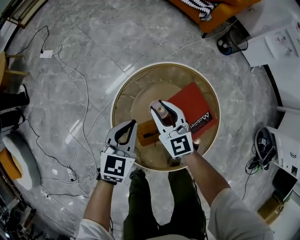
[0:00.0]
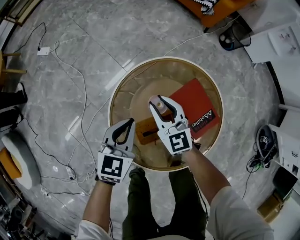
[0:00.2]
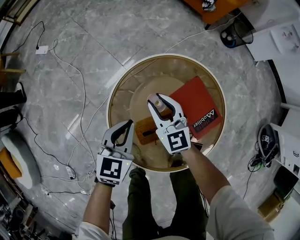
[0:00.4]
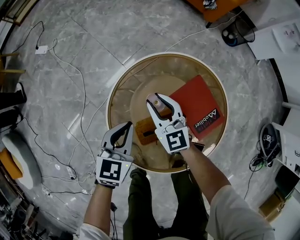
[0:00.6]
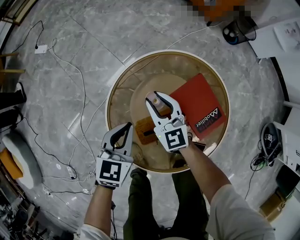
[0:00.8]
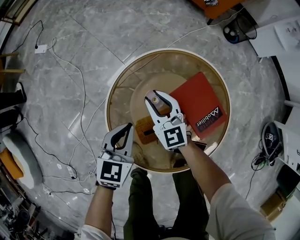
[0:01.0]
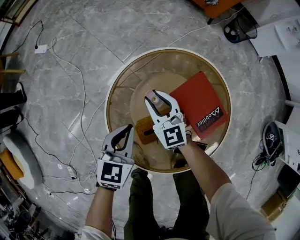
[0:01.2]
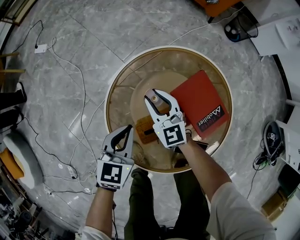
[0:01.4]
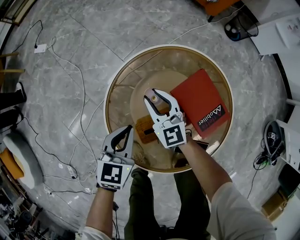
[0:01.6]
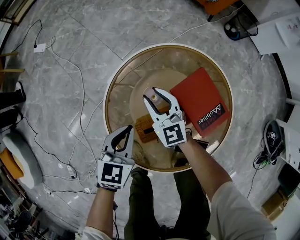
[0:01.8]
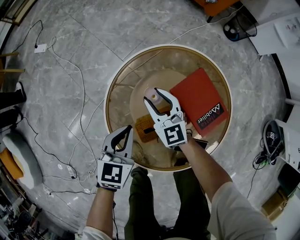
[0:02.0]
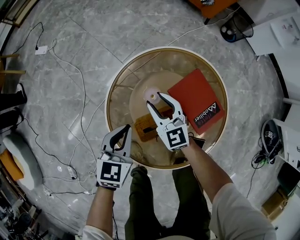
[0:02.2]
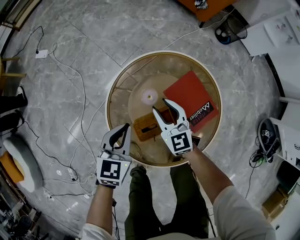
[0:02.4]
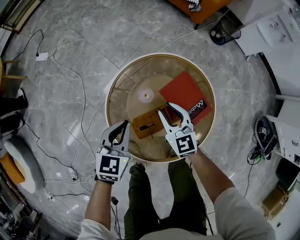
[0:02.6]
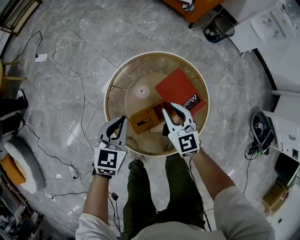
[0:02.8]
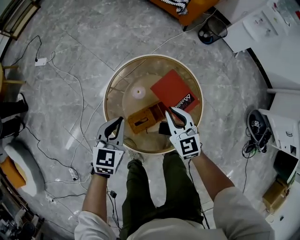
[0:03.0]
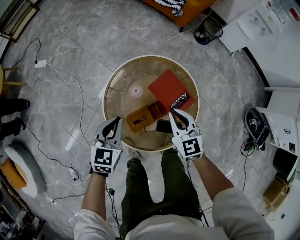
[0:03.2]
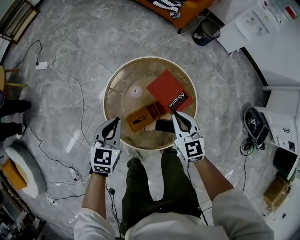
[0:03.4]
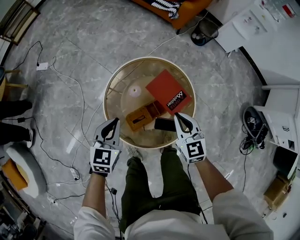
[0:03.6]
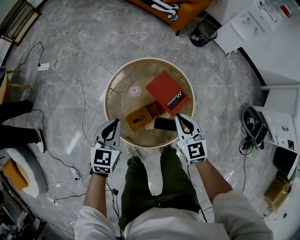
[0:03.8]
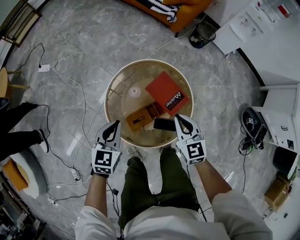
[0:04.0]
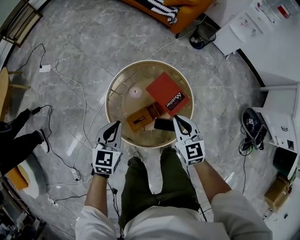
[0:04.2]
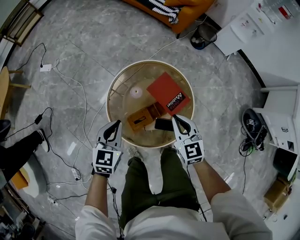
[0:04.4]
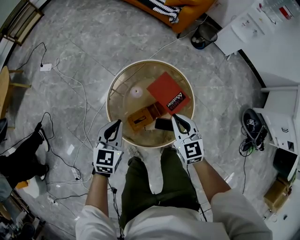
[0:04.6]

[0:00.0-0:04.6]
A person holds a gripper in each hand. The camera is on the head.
0:00.0 to 0:01.6: The two grippers go about 10 cm downward.
0:01.6 to 0:03.0: The left gripper heads upward, covering roughly 15 cm, while the right gripper goes some 25 cm upward, to the right and backward, and closes.
0:03.0 to 0:04.6: The left gripper travels upward by some 10 cm, while the right gripper heads upward and backward, covering approximately 10 cm.

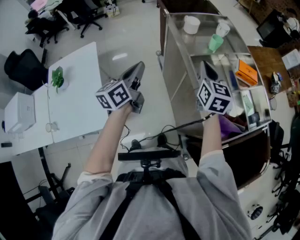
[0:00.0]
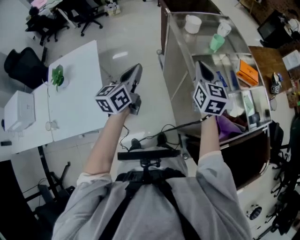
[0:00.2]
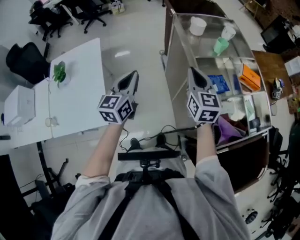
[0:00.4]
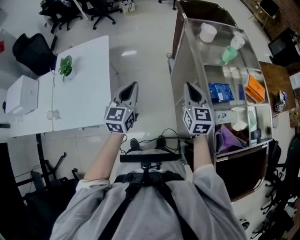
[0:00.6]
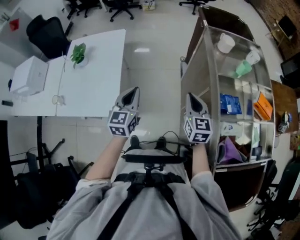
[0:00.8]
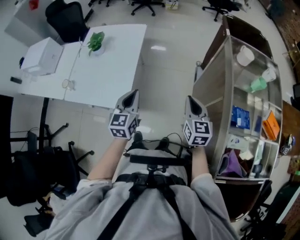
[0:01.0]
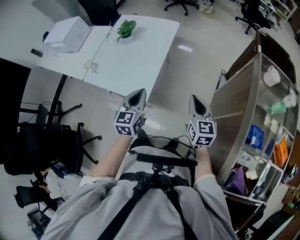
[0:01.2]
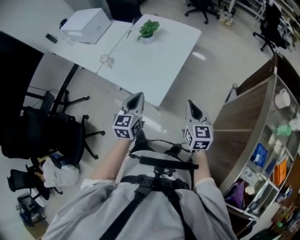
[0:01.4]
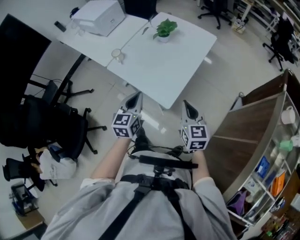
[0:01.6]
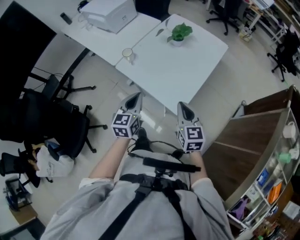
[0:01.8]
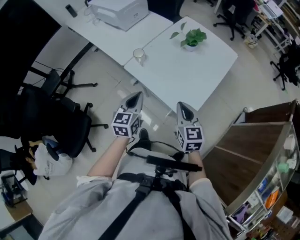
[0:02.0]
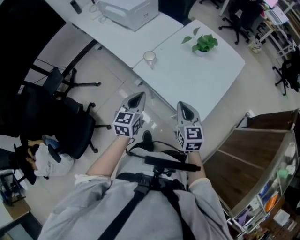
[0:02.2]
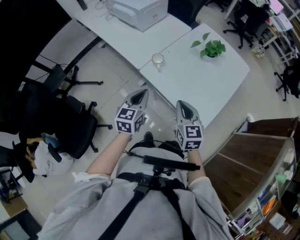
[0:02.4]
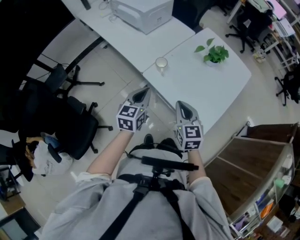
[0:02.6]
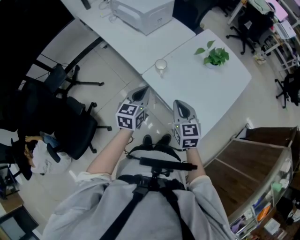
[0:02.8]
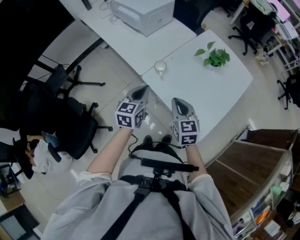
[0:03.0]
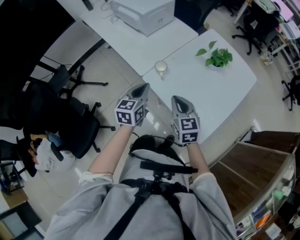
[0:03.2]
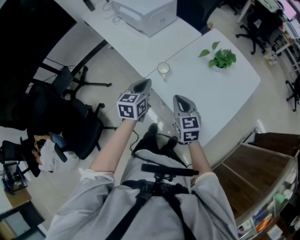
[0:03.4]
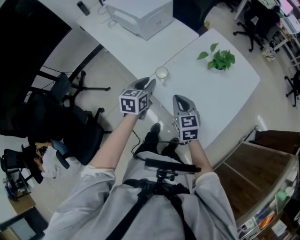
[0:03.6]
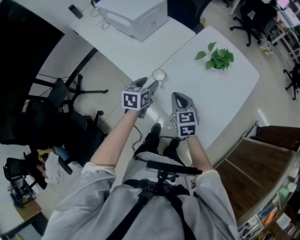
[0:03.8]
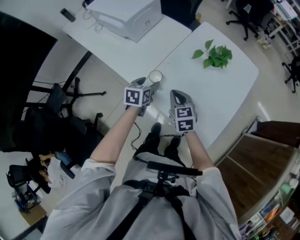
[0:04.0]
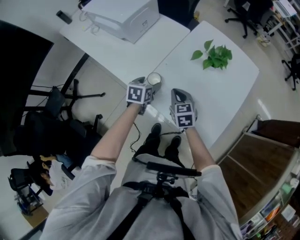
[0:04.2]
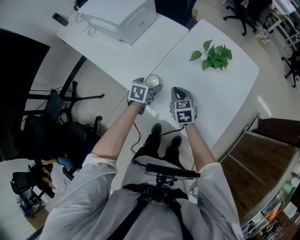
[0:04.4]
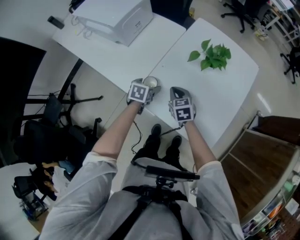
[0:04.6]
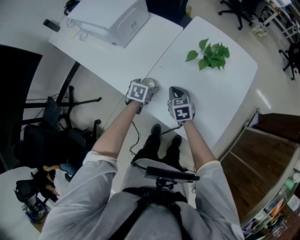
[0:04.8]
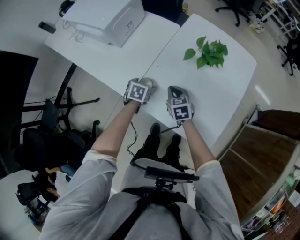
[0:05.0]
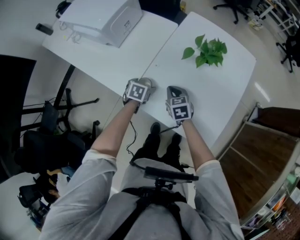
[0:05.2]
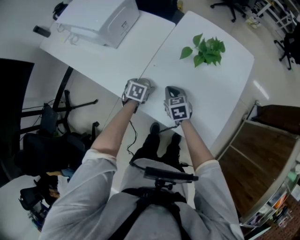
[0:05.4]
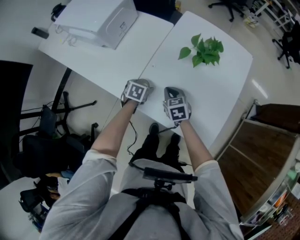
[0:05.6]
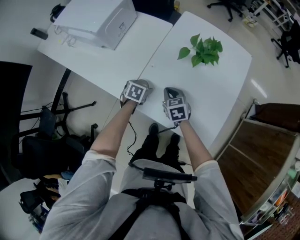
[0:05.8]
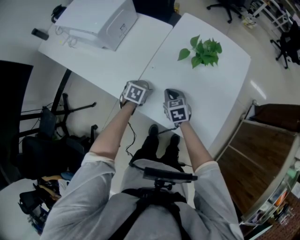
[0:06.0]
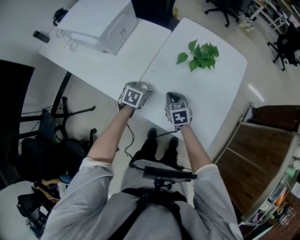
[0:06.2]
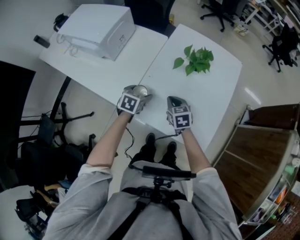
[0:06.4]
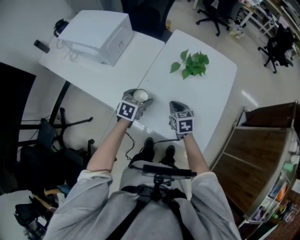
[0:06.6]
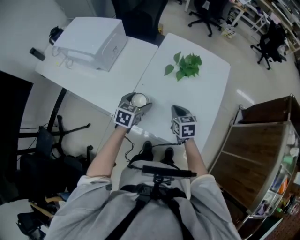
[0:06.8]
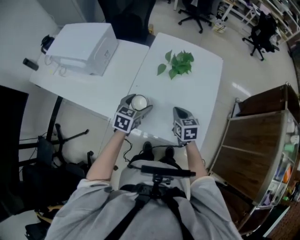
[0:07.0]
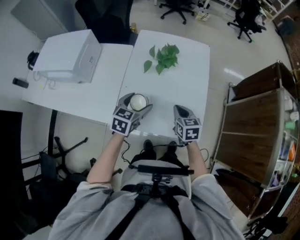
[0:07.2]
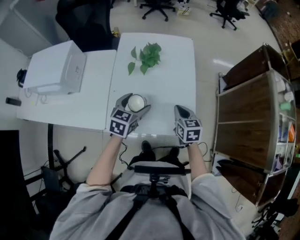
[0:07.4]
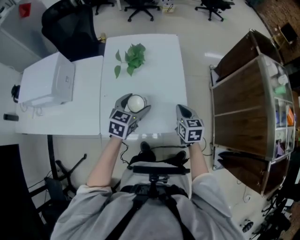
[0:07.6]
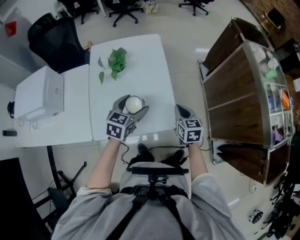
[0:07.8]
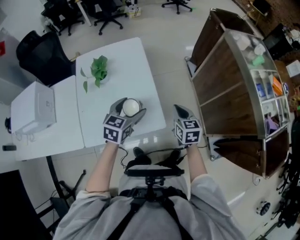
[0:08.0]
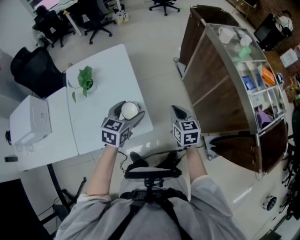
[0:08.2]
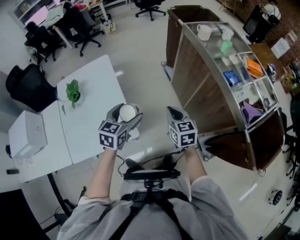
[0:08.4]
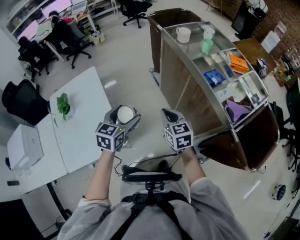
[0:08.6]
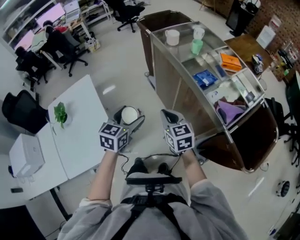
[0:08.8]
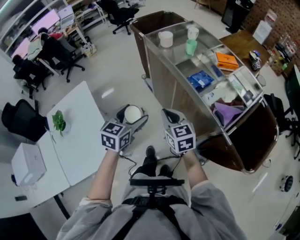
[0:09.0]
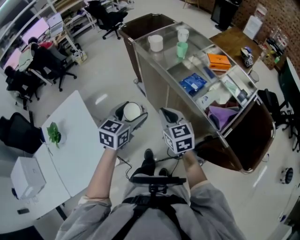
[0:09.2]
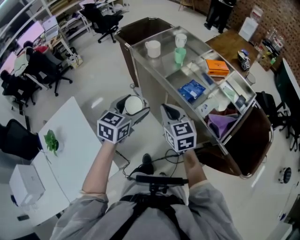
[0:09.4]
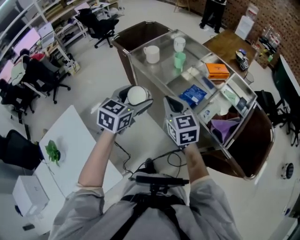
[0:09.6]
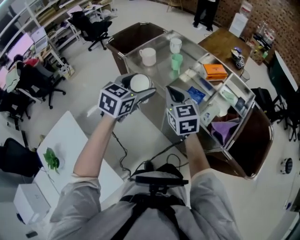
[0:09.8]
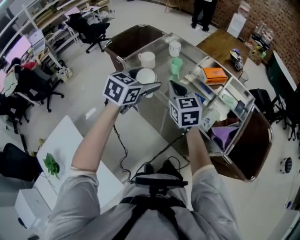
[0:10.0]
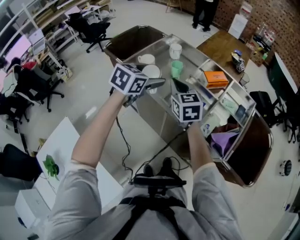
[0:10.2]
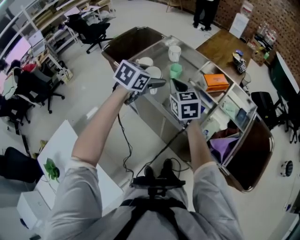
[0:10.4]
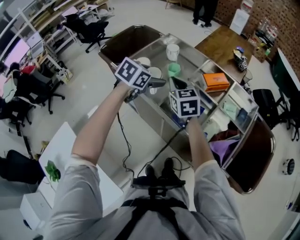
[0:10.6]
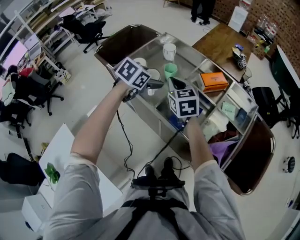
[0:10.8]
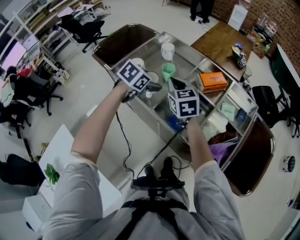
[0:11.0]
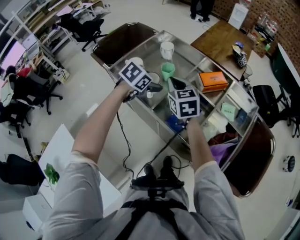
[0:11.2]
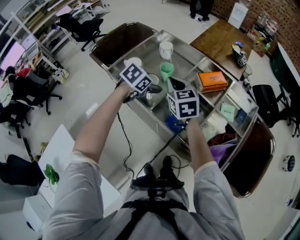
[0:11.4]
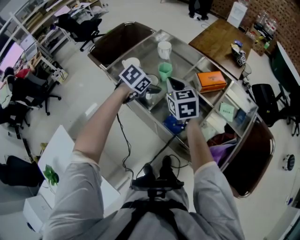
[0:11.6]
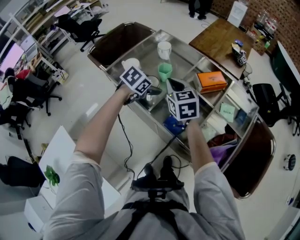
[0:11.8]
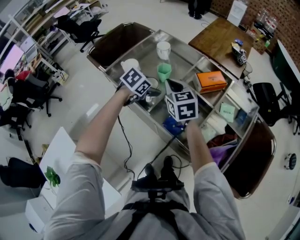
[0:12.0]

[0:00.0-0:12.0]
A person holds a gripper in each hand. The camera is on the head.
0:00.0 to 0:01.6: Both grippers are carried approximately 50 cm. The right gripper swivels some 60 degrees, while the left gripper changes its angle by about 70 degrees.
0:01.6 to 0:03.0: Both grippers travel together to the left and forward, approximately 35 cm.
0:03.0 to 0:04.4: Both grippers move forward and downward, some 25 cm. The left gripper turns by roughly 30 degrees, and opens up.
0:04.4 to 0:06.0: The left gripper travels downward by about 5 cm.
0:06.0 to 0:07.6: The left gripper changes place by some 30 cm, and tips its fingers upward by approximately 30 degrees; the right gripper shifts by approximately 30 cm, and swivels approximately 40 degrees.
0:07.6 to 0:09.0: Both grippers are carried to the right, about 50 cm. The right gripper changes its angle by about 20 degrees. Meanwhile the left gripper rotates some 30 degrees.
0:09.0 to 0:10.4: The right gripper changes place by roughly 35 cm, and changes its angle by some 20 degrees; the left gripper ends up roughly 40 cm from where it was, and turns by approximately 30 degrees.
0:10.4 to 0:12.0: The left gripper heads downward and forward, covering approximately 15 cm, and turns by about 20 degrees. The right gripper heads forward, covering roughly 5 cm.

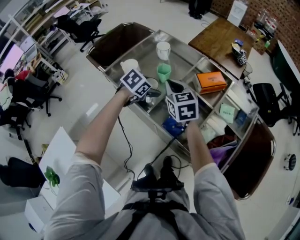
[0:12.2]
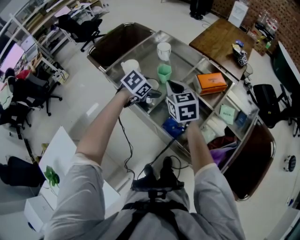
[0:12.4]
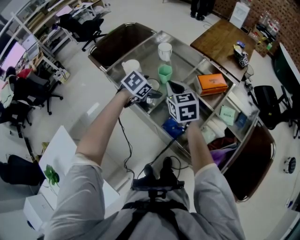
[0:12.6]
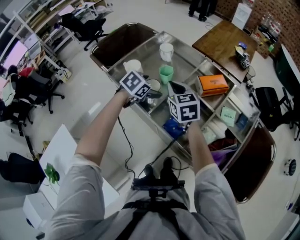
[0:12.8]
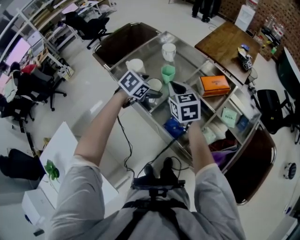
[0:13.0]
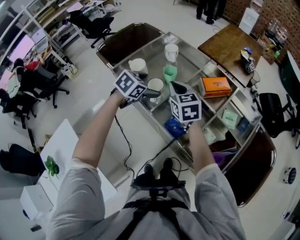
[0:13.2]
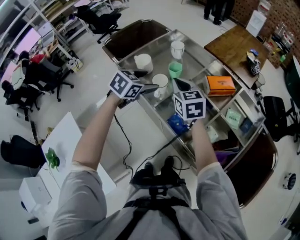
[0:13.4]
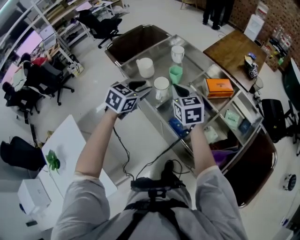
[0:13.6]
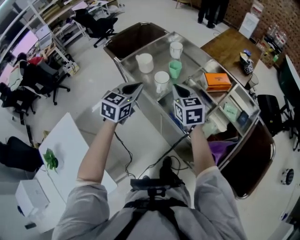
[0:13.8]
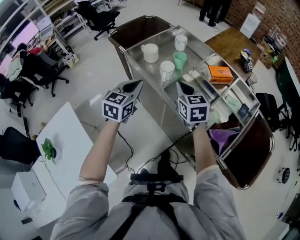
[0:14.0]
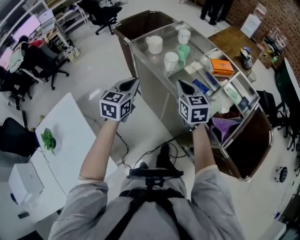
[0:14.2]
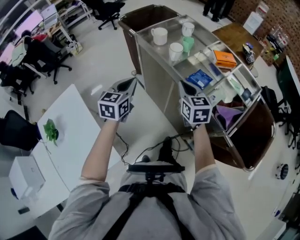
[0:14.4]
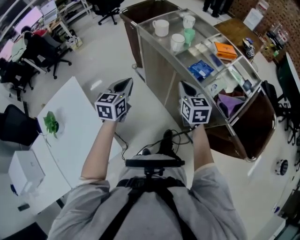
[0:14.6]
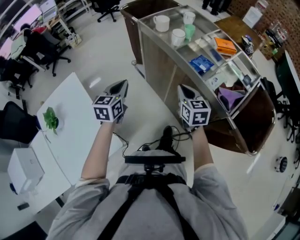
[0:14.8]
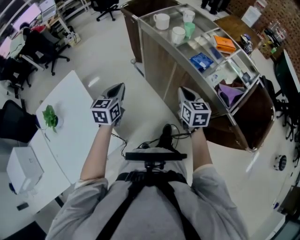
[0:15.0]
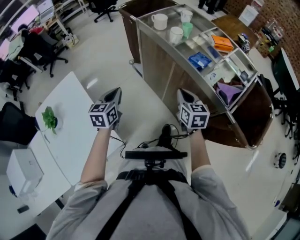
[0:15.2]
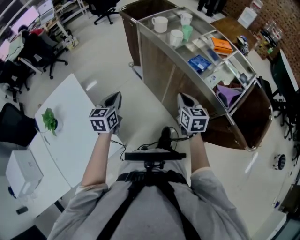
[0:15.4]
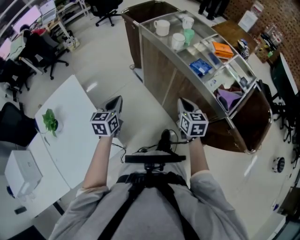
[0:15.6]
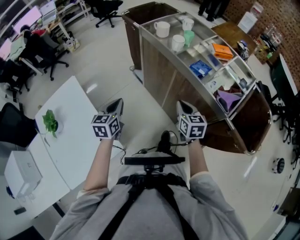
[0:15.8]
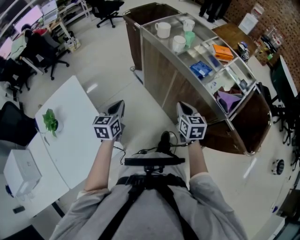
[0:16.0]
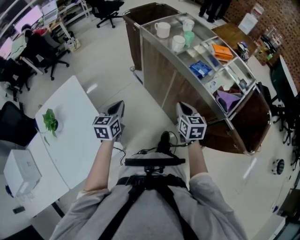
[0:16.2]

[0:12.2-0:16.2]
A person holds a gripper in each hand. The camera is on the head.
0:12.2 to 0:13.6: The left gripper travels upward, backward and to the left by roughly 15 cm, changes its angle by roughly 30 degrees, and closes up.
0:13.6 to 0:14.8: The right gripper moves backward, some 30 cm. Meanwhile the left gripper heads backward and to the left, covering roughly 35 cm, and turns by approximately 30 degrees.
0:14.8 to 0:16.2: The left gripper goes about 10 cm backward and downward. Meanwhile the right gripper moves backward, roughly 5 cm.

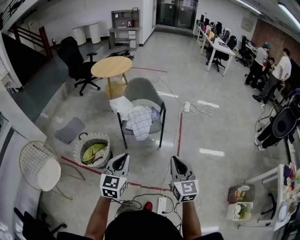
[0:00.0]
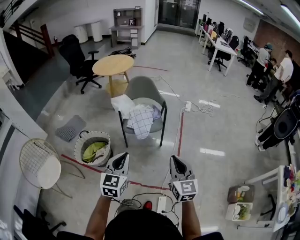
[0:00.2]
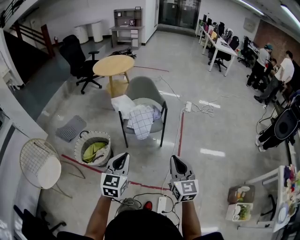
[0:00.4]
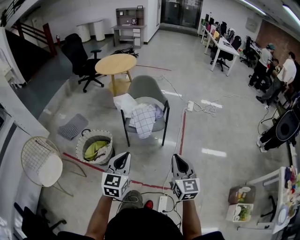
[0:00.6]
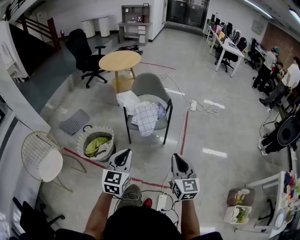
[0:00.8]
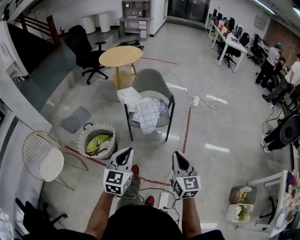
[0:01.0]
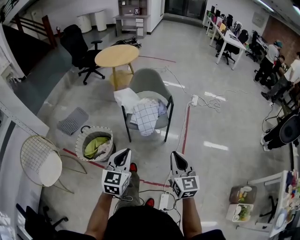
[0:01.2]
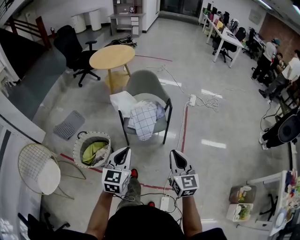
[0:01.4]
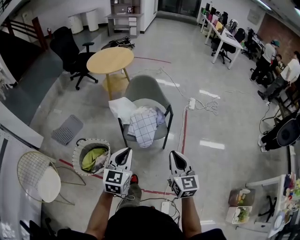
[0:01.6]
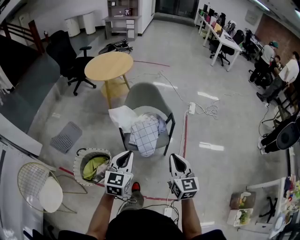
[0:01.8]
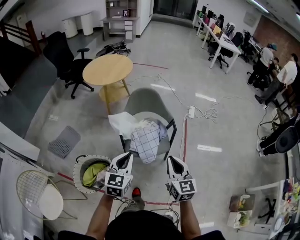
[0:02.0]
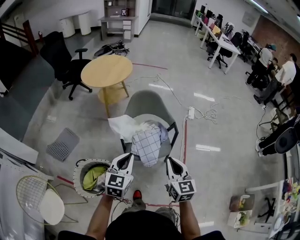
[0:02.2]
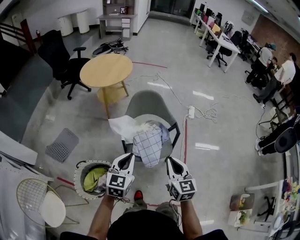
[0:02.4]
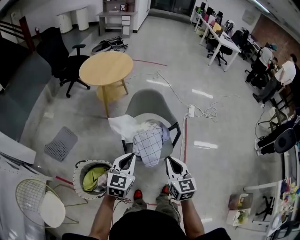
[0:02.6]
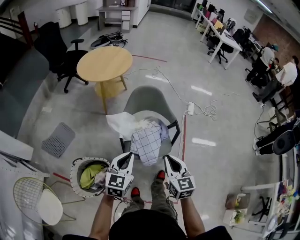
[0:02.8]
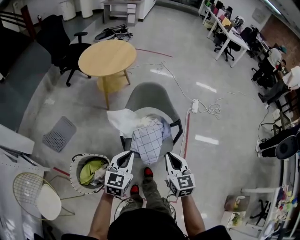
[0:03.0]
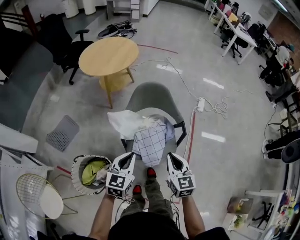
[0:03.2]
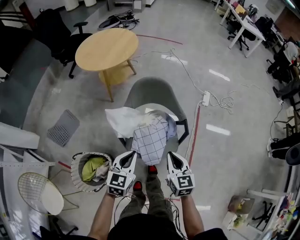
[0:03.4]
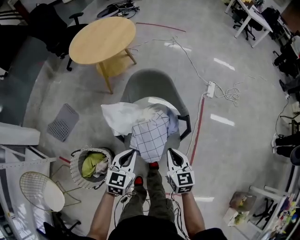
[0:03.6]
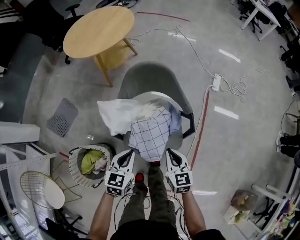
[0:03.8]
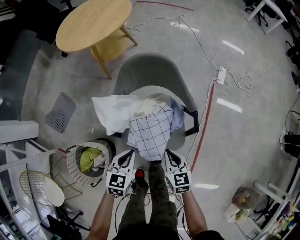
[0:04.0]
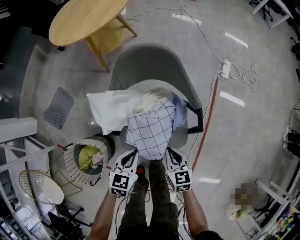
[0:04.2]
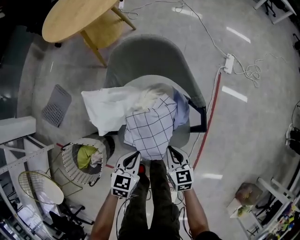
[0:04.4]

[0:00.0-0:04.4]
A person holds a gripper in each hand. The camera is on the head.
0:00.0 to 0:01.4: The two grippers go some 15 cm forward.
0:01.4 to 0:03.0: The right gripper is displaced forward and to the left by approximately 35 cm; the left gripper moves forward, some 30 cm.
0:03.0 to 0:04.4: Both grippers move downward, approximately 35 cm. The left gripper turns by about 30 degrees. The right gripper turns by about 20 degrees.
